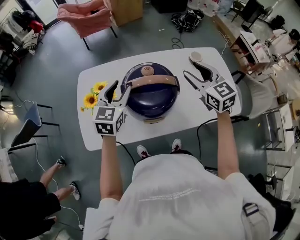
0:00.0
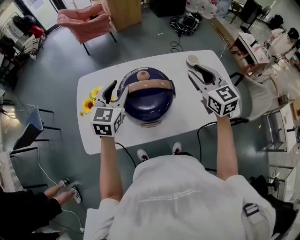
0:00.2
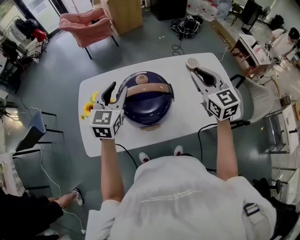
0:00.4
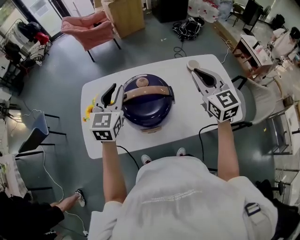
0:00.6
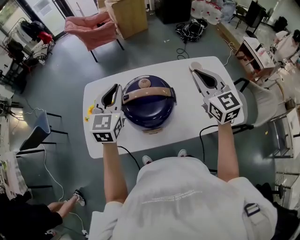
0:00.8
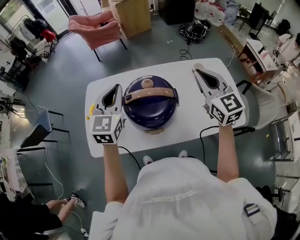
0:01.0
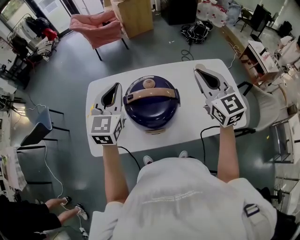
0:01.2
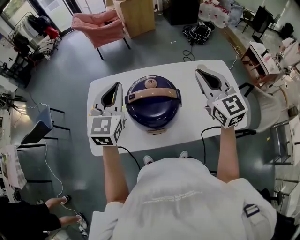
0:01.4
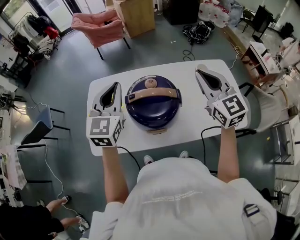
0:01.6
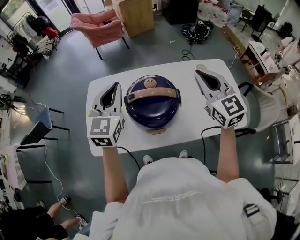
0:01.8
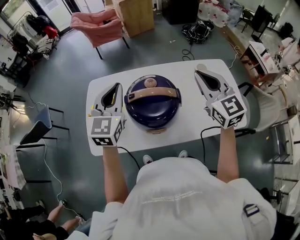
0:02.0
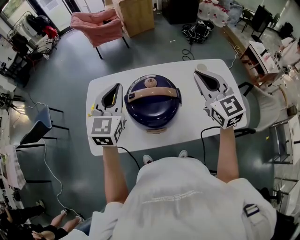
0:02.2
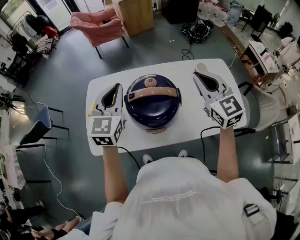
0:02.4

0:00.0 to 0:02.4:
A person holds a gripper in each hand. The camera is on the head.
0:00.0 to 0:01.2: Both grippers travel together upward, approximately 10 cm. The right gripper closes up, while the left gripper closes its fingers.
0:01.2 to 0:02.4: There are only small adjustments of the grippers.

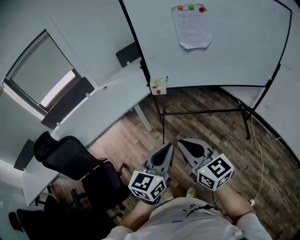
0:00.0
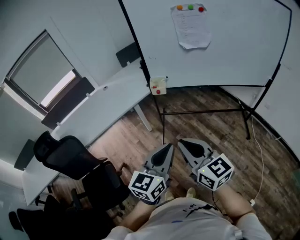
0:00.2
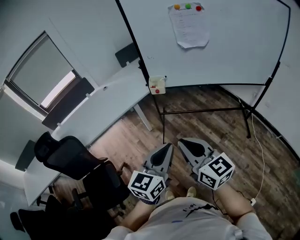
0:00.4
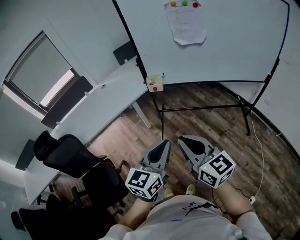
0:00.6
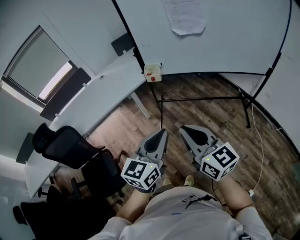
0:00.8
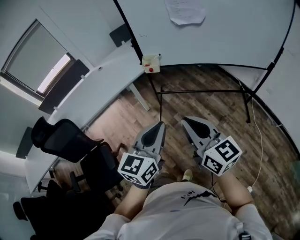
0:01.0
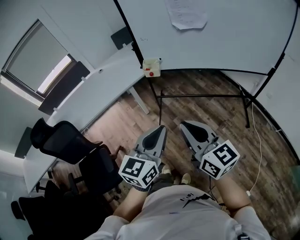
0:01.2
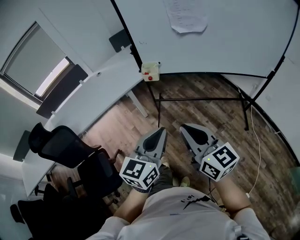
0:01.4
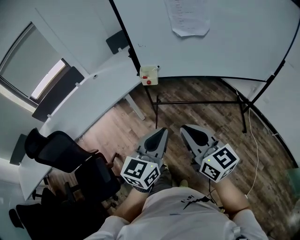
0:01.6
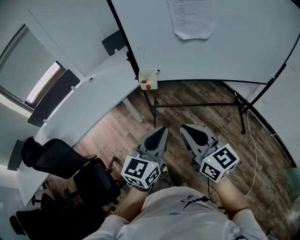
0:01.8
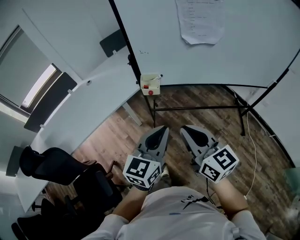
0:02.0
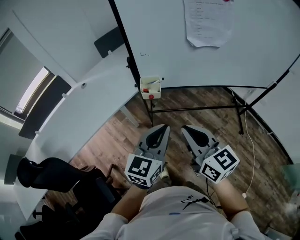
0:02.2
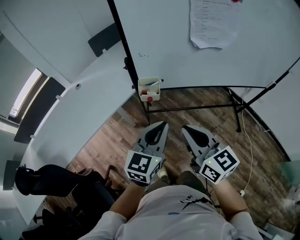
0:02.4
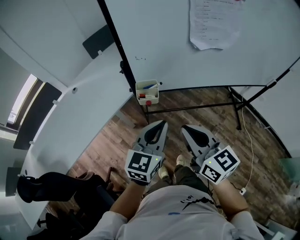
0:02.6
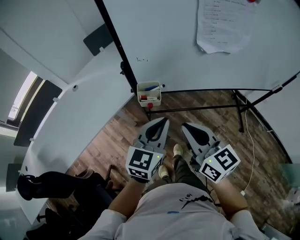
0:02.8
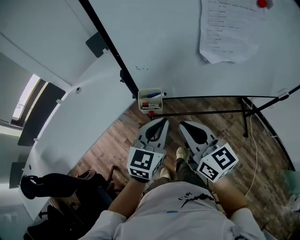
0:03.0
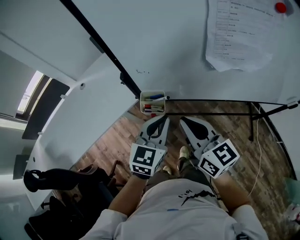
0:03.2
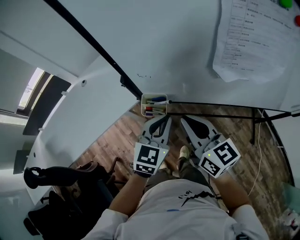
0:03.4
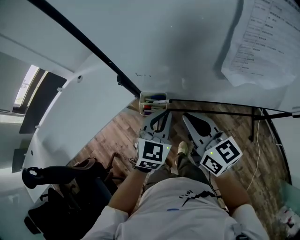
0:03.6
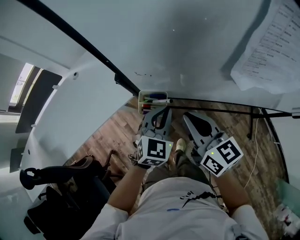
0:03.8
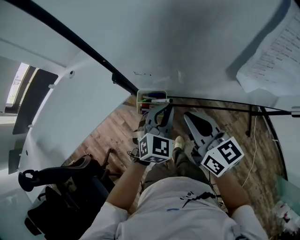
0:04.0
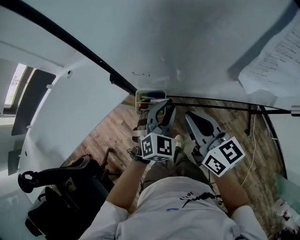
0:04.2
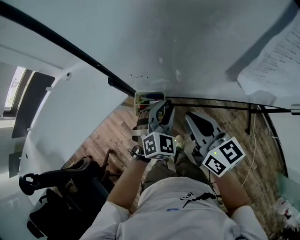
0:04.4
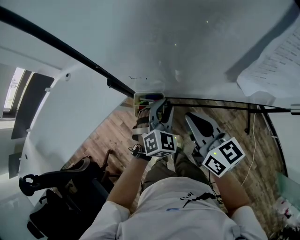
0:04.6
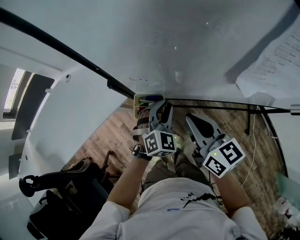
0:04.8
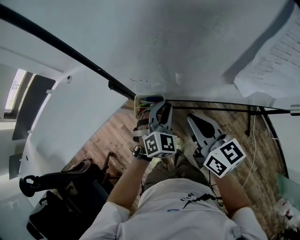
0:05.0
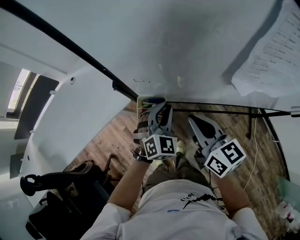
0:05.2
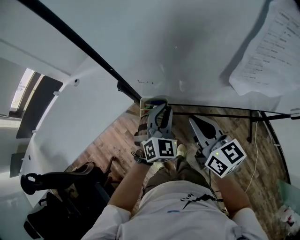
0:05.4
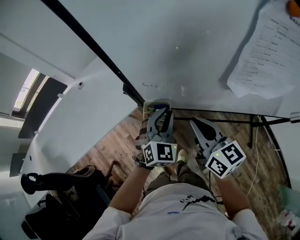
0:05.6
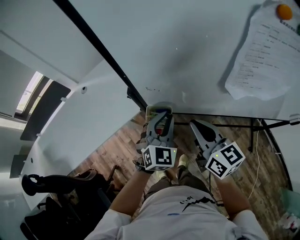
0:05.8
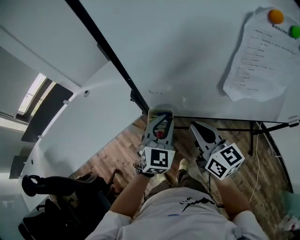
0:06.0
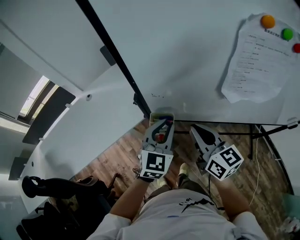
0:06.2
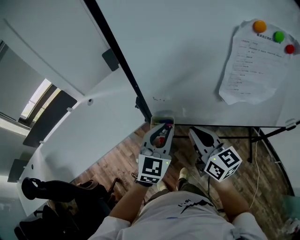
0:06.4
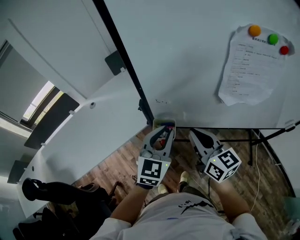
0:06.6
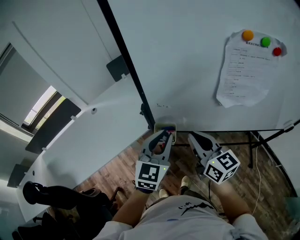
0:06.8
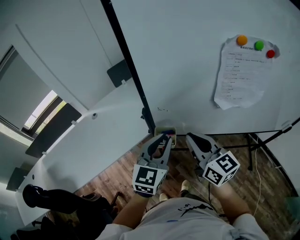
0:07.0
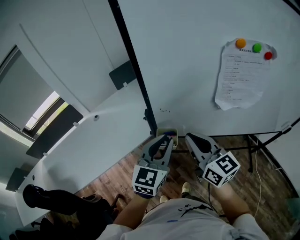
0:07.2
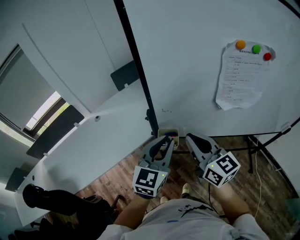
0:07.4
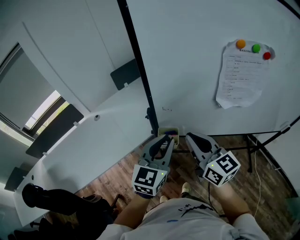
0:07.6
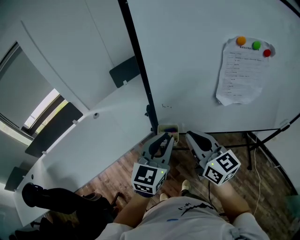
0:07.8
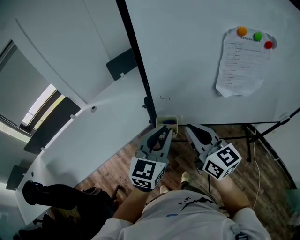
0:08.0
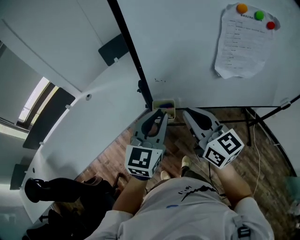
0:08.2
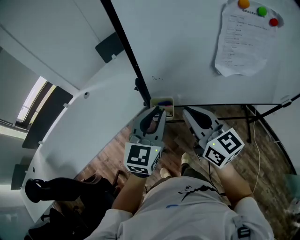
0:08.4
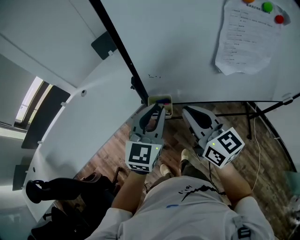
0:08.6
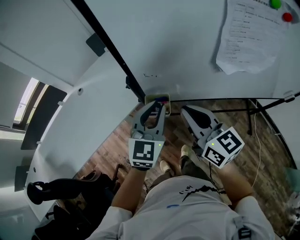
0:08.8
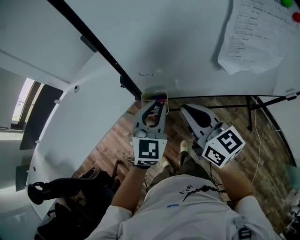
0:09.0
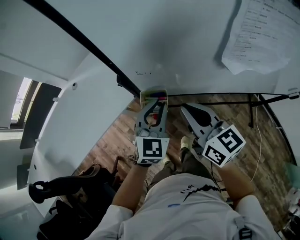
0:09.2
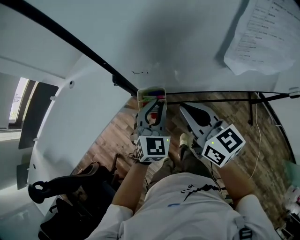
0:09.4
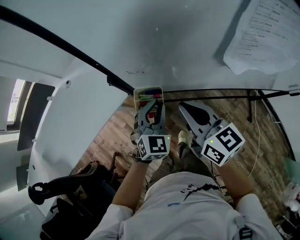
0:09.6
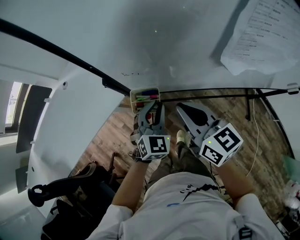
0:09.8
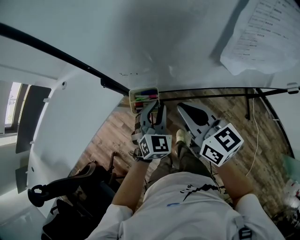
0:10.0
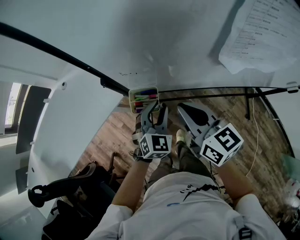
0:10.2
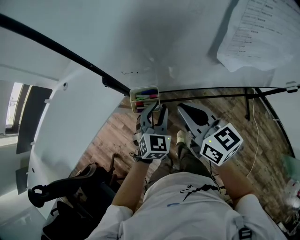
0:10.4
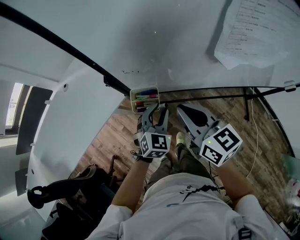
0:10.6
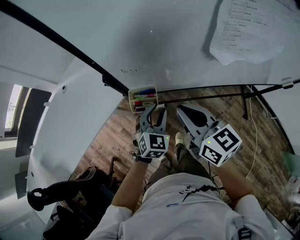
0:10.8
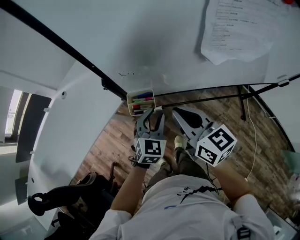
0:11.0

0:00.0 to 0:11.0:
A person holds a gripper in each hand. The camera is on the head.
0:00.0 to 0:01.6: The right gripper goes roughly 10 cm to the right and forward. The left gripper shifts roughly 5 cm forward.
0:01.6 to 0:03.2: Both grippers travel together forward, roughly 40 cm.
0:03.2 to 0:04.8: The right gripper heads forward and downward, covering some 10 cm; the left gripper travels downward and forward by roughly 20 cm, and turns by about 40 degrees.
0:04.8 to 0:06.2: The left gripper heads upward, covering roughly 15 cm, and swivels some 30 degrees; the right gripper travels upward by approximately 5 cm.
0:06.2 to 0:07.8: The right gripper moves upward, to the left and backward, some 10 cm; the left gripper goes some 10 cm upward and backward.
0:07.8 to 0:09.4: The left gripper is displaced downward and forward by approximately 20 cm, and swivels roughly 30 degrees; the right gripper heads downward and forward, covering approximately 15 cm.
0:09.4 to 0:11.0: The left gripper travels downward by about 5 cm.

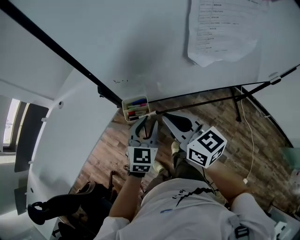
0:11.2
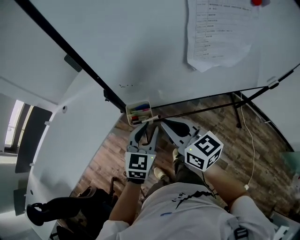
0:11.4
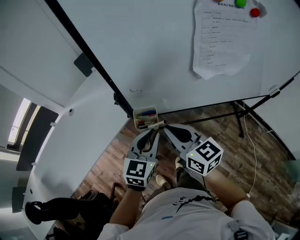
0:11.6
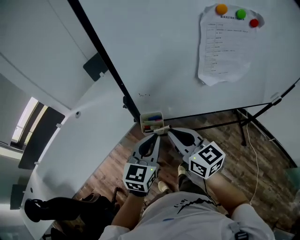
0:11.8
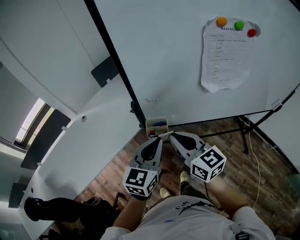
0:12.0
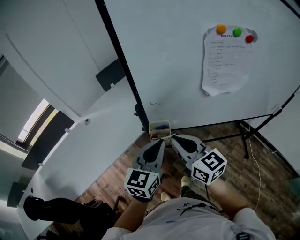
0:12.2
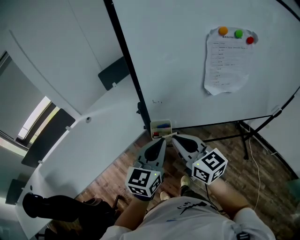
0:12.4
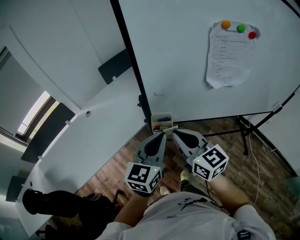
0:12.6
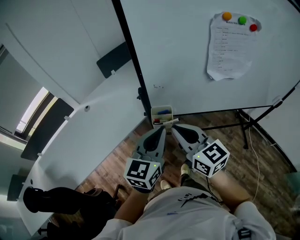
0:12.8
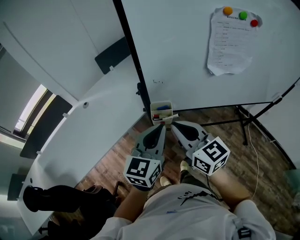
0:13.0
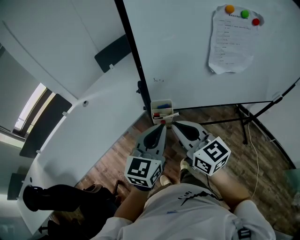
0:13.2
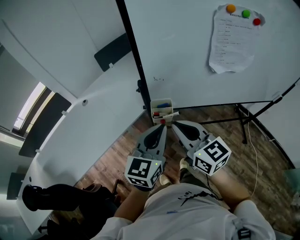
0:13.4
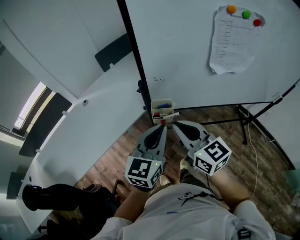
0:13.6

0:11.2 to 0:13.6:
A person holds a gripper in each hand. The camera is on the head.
0:11.2 to 0:12.4: The left gripper heads upward and backward, covering approximately 20 cm, swivels some 20 degrees, and closes its fingers; the right gripper travels upward, to the left and backward by roughly 10 cm.
0:12.4 to 0:13.6: The grippers make only small movements.

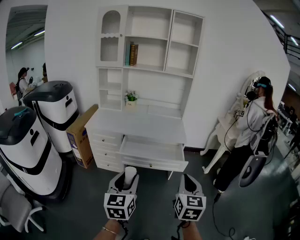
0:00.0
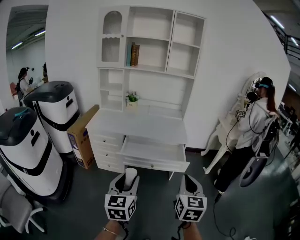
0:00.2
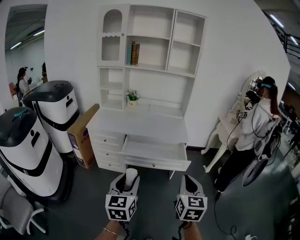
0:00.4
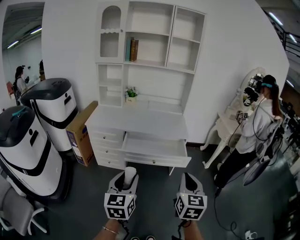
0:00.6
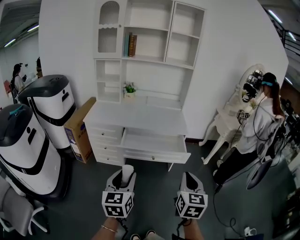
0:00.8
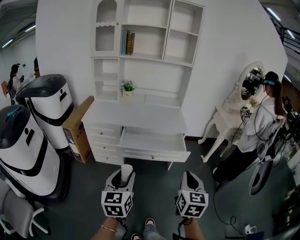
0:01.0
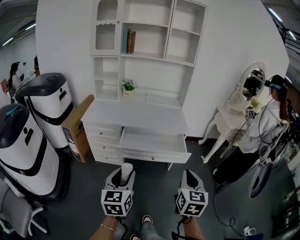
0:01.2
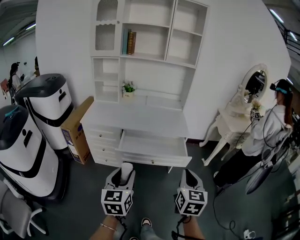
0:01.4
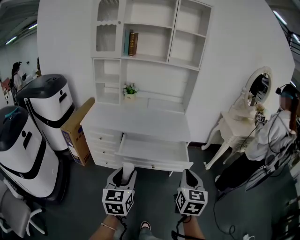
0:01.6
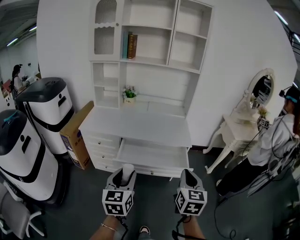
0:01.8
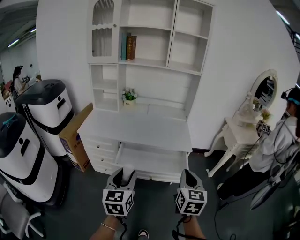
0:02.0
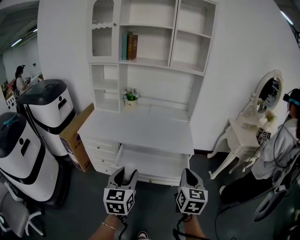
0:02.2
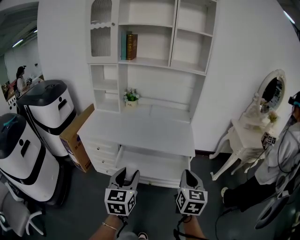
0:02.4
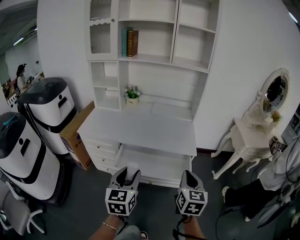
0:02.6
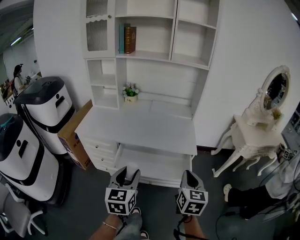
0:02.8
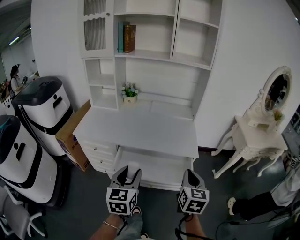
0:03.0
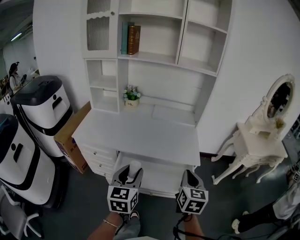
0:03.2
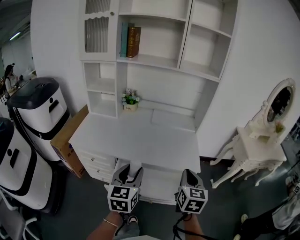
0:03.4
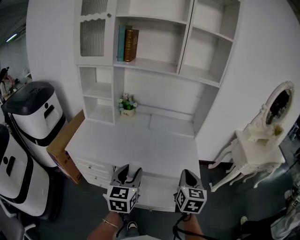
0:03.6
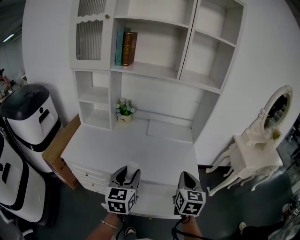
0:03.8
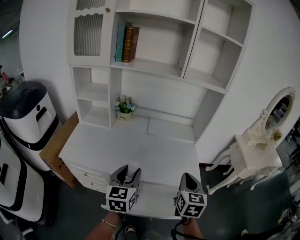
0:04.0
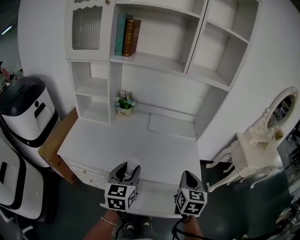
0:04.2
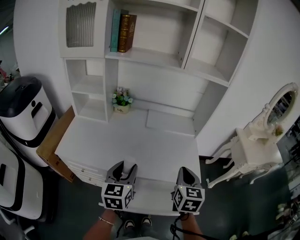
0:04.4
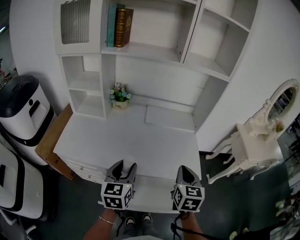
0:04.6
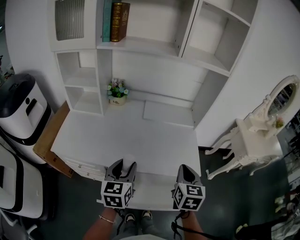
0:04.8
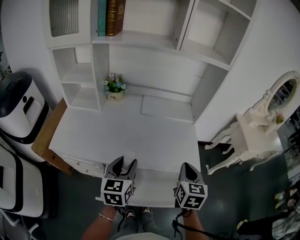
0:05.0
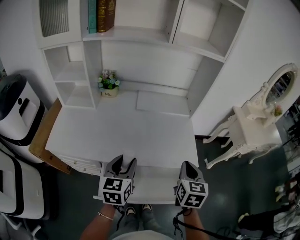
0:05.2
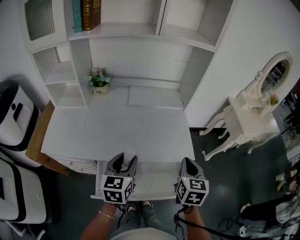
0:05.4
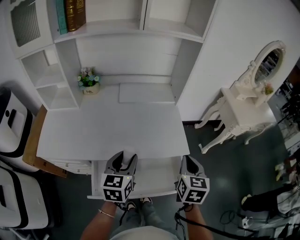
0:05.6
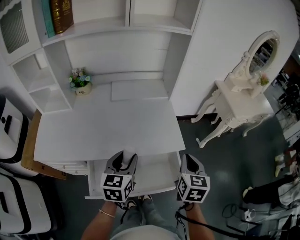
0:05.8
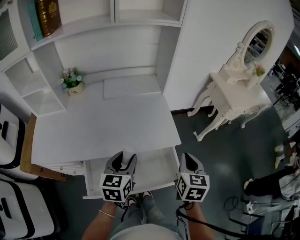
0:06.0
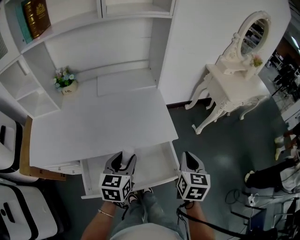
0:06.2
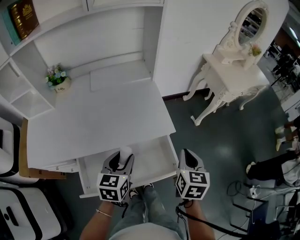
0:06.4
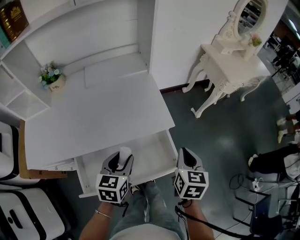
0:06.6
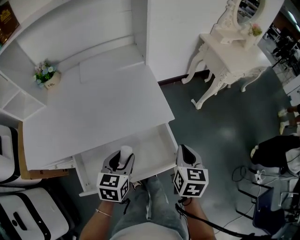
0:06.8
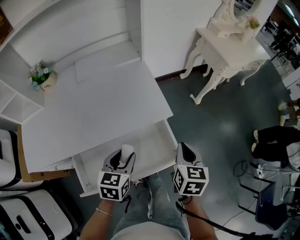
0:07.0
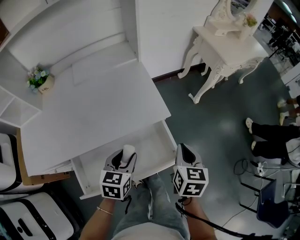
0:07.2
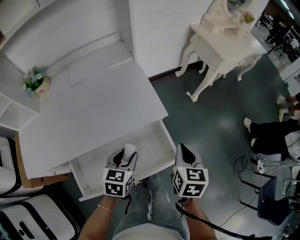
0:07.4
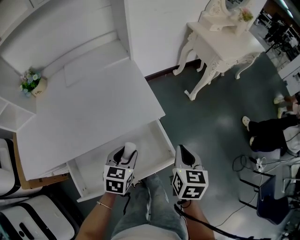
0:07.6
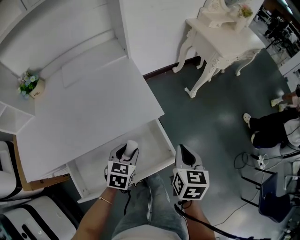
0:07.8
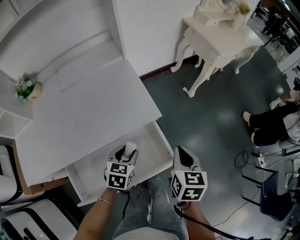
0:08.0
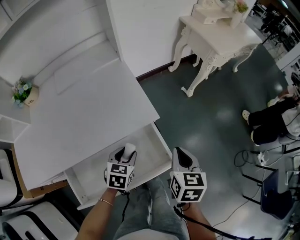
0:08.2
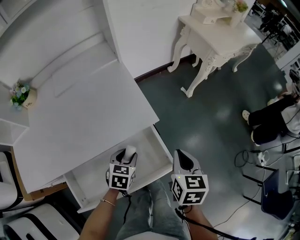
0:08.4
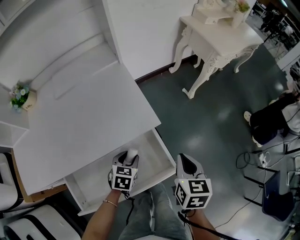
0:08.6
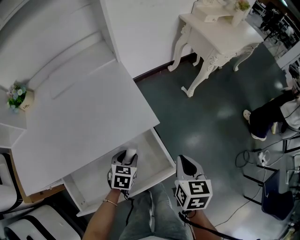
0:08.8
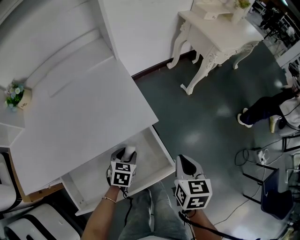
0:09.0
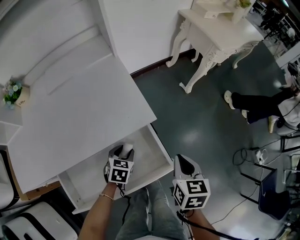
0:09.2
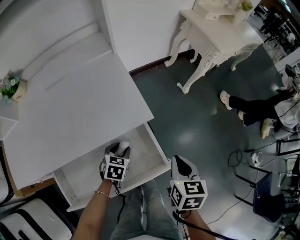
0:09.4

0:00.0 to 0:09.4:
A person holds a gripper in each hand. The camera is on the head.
0:00.0 to 0:01.6: Both grippers move forward, approximately 10 cm.
0:01.6 to 0:03.2: The grippers both shift forward by roughly 25 cm.
0:03.2 to 0:04.8: The grippers both shift forward by roughly 20 cm.
0:04.8 to 0:06.2: The left gripper shifts approximately 20 cm to the right and downward, and rotates roughly 20 degrees. Meanwhile the right gripper shifts some 20 cm to the right, and turns by approximately 20 degrees.
0:06.2 to 0:07.8: The left gripper goes about 20 cm downward and to the right, and swivels about 30 degrees; the right gripper is displaced downward and to the right by approximately 10 cm.
0:07.8 to 0:09.4: The right gripper heads downward, covering about 5 cm. Meanwhile the left gripper heads downward, covering some 10 cm.
